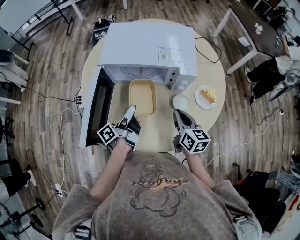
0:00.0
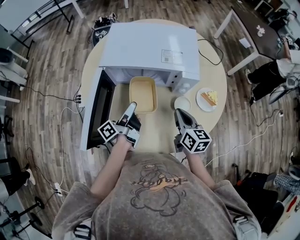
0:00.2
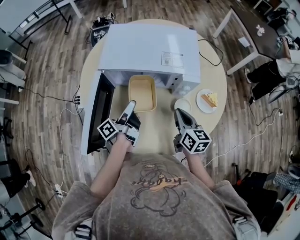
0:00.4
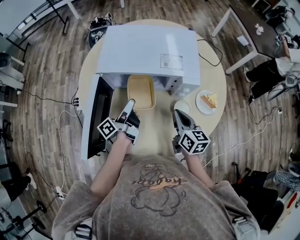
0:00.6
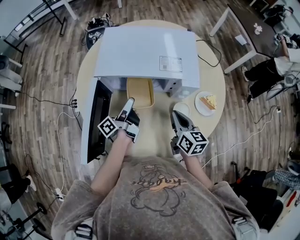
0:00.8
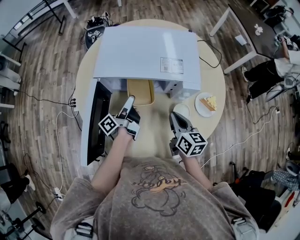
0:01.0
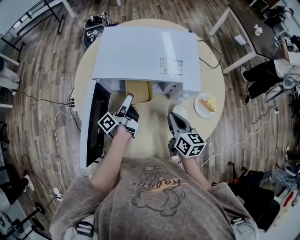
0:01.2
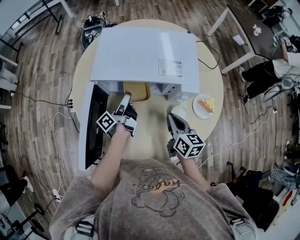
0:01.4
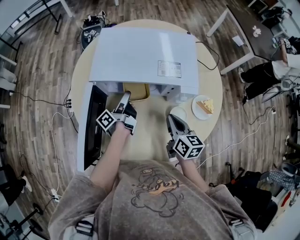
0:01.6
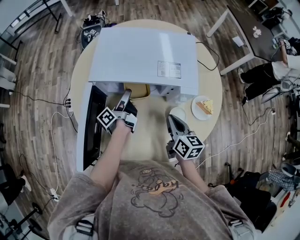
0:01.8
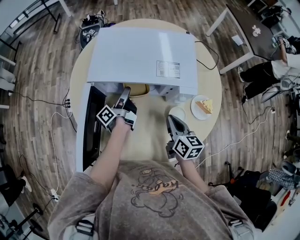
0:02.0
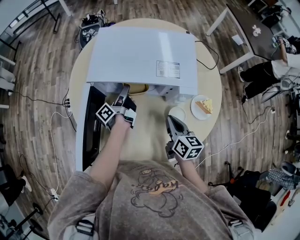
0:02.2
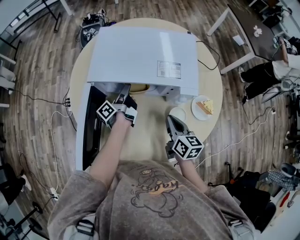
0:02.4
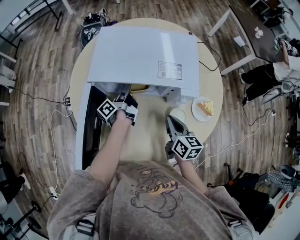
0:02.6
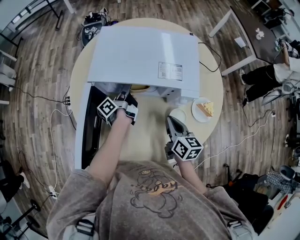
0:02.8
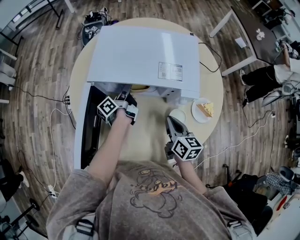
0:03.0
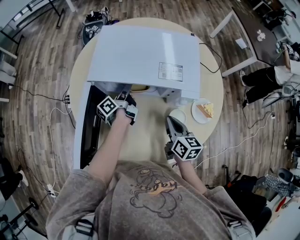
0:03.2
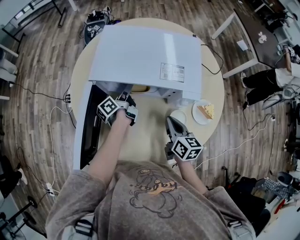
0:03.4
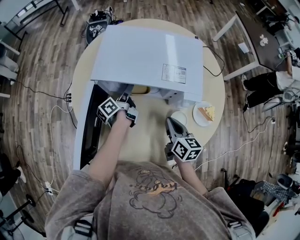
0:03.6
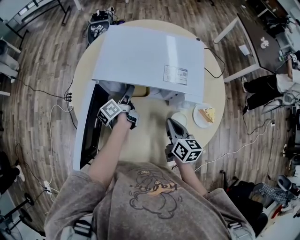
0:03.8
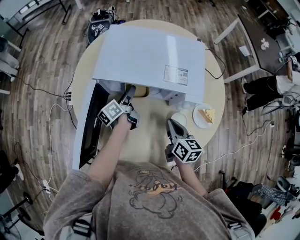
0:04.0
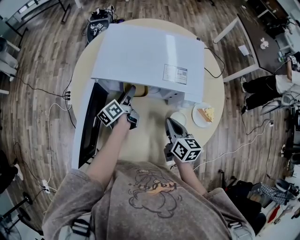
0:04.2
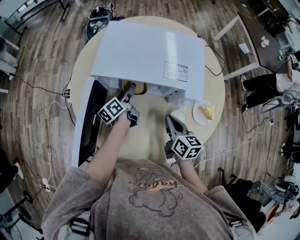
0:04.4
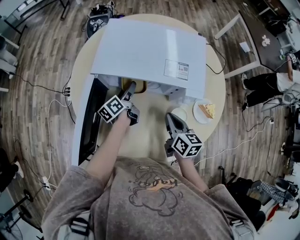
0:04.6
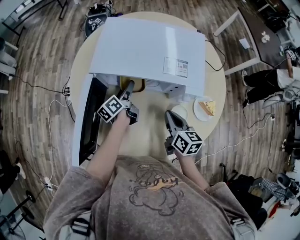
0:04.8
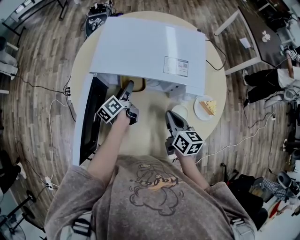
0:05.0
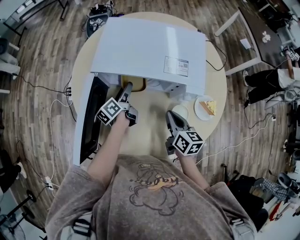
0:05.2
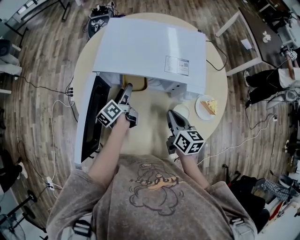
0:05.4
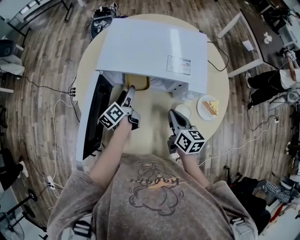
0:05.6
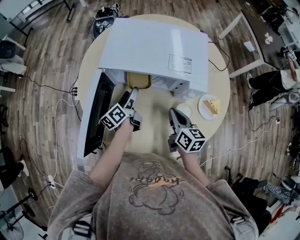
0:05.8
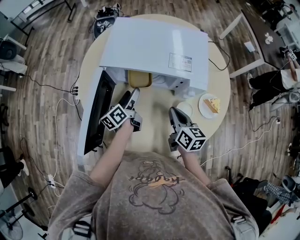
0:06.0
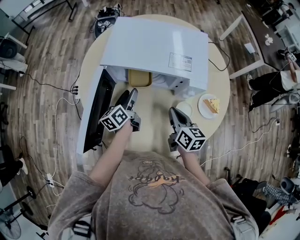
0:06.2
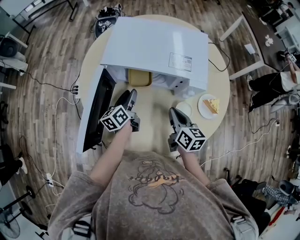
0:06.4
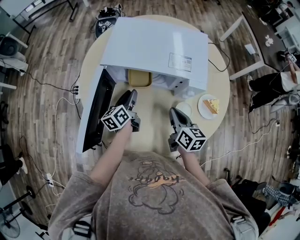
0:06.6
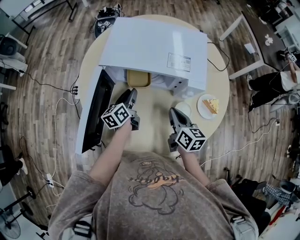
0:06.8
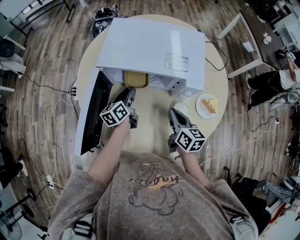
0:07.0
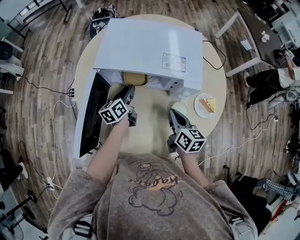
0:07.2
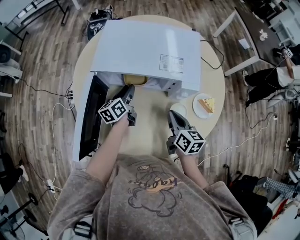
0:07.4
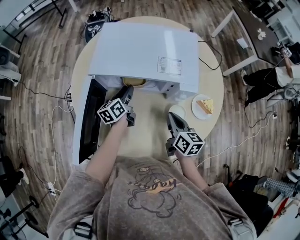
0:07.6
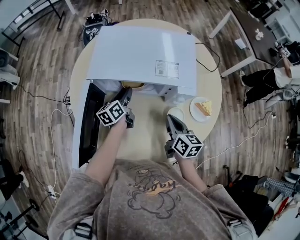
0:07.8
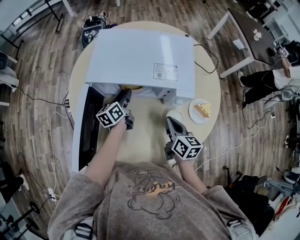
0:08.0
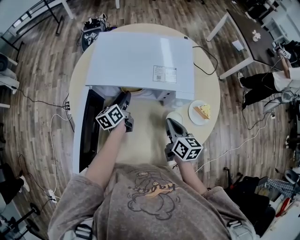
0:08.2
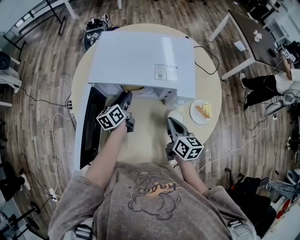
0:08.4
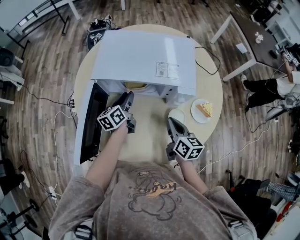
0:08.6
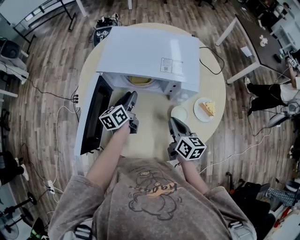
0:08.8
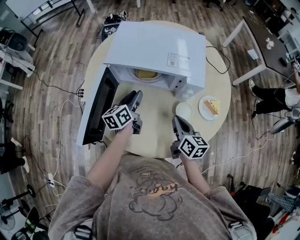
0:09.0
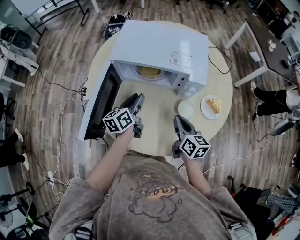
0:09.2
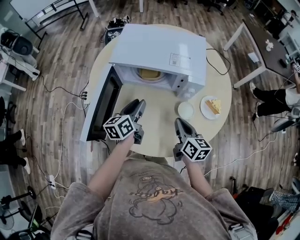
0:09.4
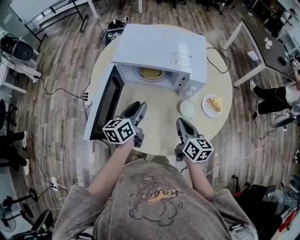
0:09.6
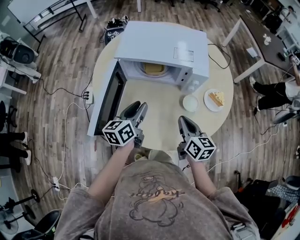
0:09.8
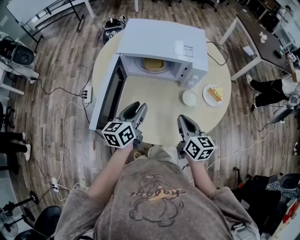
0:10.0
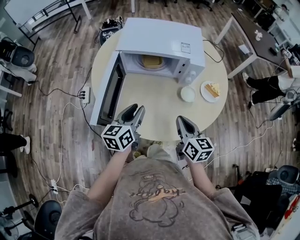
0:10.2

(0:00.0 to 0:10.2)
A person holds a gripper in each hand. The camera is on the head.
0:00.0 - 0:01.4: The right gripper shifts about 5 cm forward, while the left gripper travels forward by some 15 cm.
0:01.4 - 0:03.0: The left gripper goes about 5 cm forward.
0:03.0 - 0:04.4: The left gripper turns by some 20 degrees.
0:04.4 - 0:05.8: The left gripper goes roughly 5 cm backward.
0:05.8 - 0:07.2: The left gripper closes up.
0:07.2 - 0:08.8: There are only small adjustments of the grippers.
0:08.8 - 0:10.2: The right gripper travels backward by approximately 15 cm. The left gripper travels backward and upward by some 20 cm.

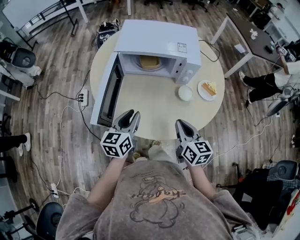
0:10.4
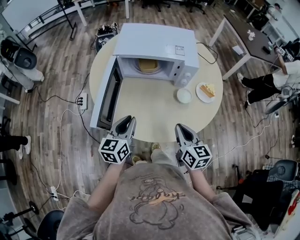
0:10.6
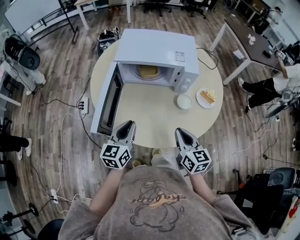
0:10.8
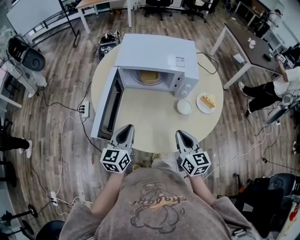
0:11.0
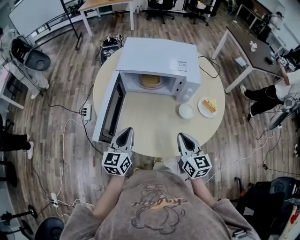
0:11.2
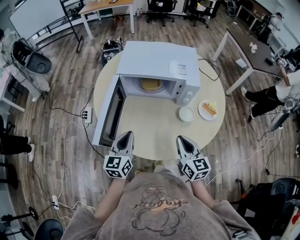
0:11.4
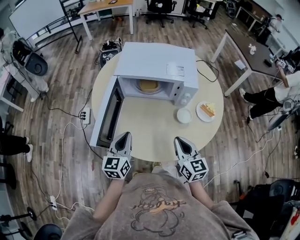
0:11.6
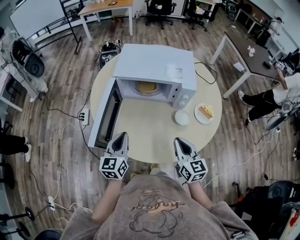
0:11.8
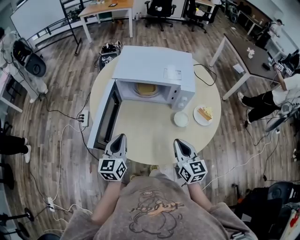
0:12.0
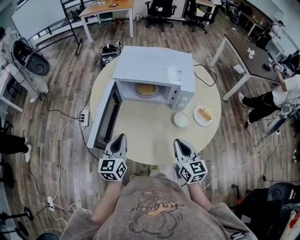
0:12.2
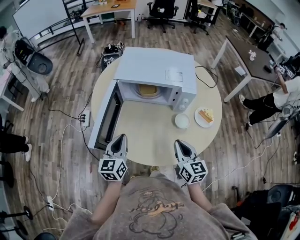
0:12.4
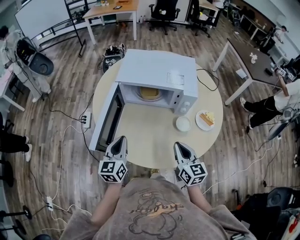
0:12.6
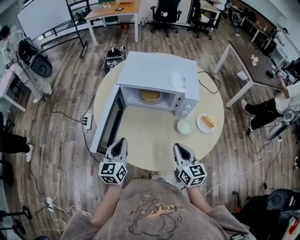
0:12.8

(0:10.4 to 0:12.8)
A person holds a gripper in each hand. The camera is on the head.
0:10.4 - 0:12.8: There are only small adjustments of the grippers.

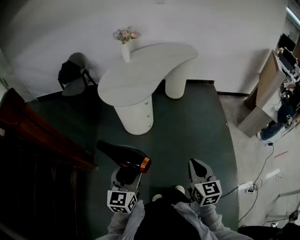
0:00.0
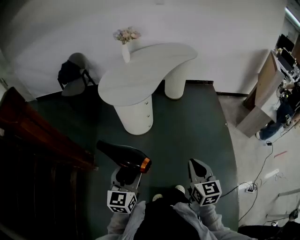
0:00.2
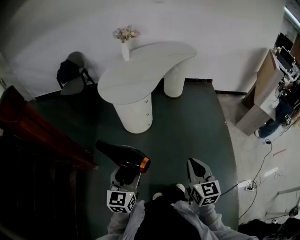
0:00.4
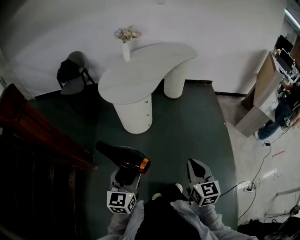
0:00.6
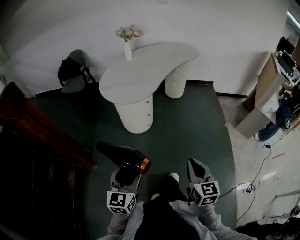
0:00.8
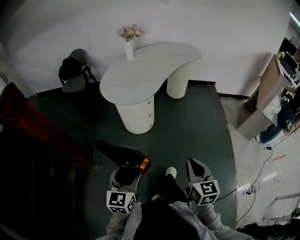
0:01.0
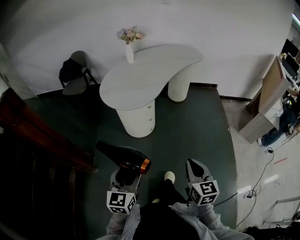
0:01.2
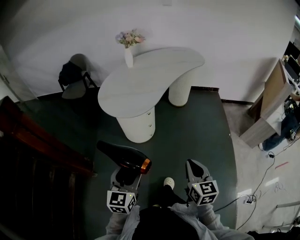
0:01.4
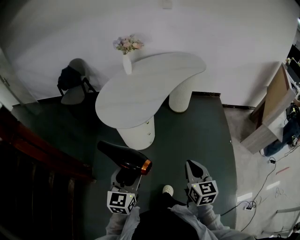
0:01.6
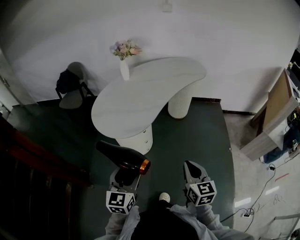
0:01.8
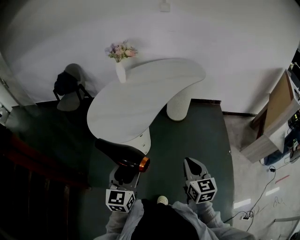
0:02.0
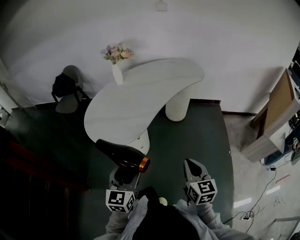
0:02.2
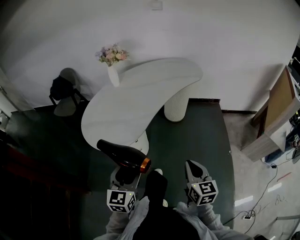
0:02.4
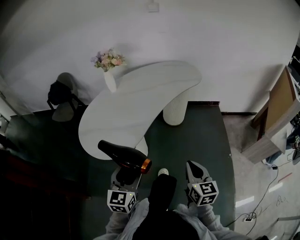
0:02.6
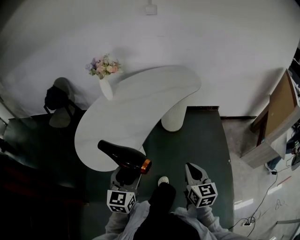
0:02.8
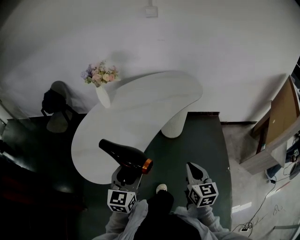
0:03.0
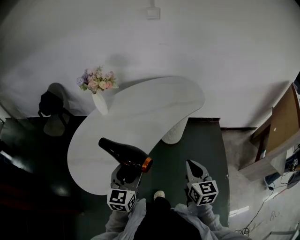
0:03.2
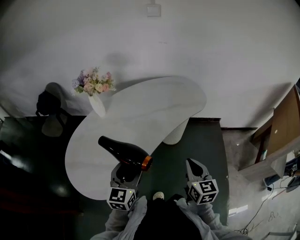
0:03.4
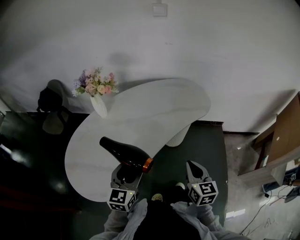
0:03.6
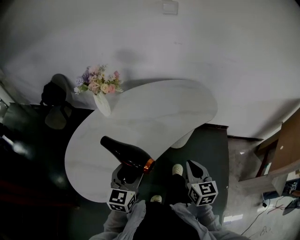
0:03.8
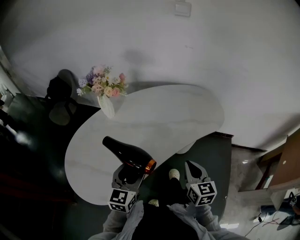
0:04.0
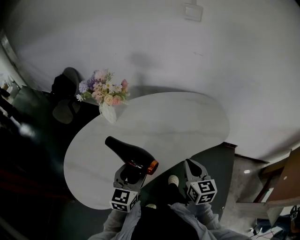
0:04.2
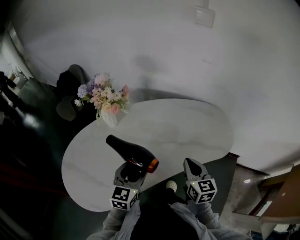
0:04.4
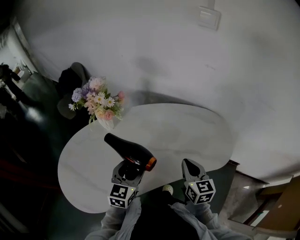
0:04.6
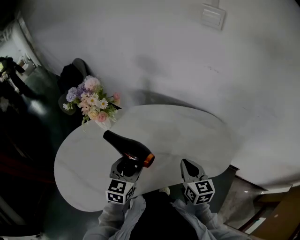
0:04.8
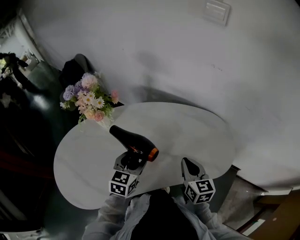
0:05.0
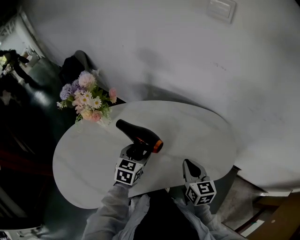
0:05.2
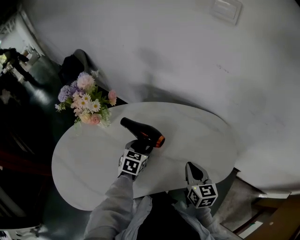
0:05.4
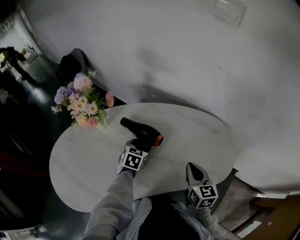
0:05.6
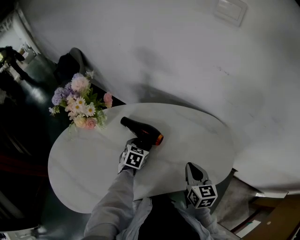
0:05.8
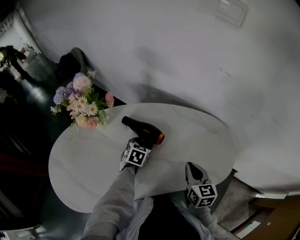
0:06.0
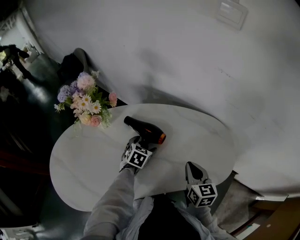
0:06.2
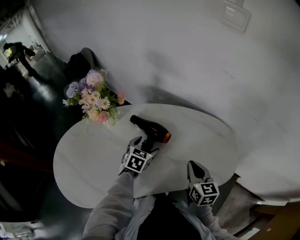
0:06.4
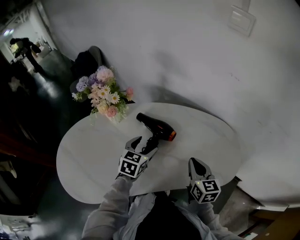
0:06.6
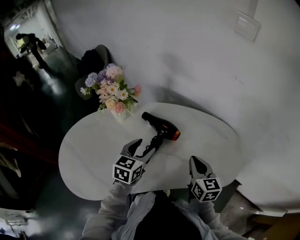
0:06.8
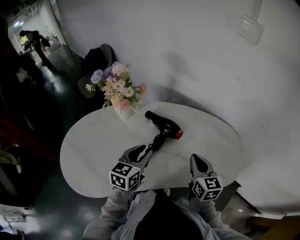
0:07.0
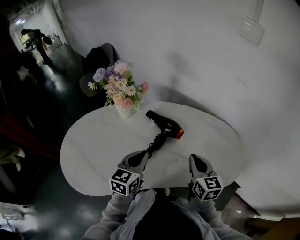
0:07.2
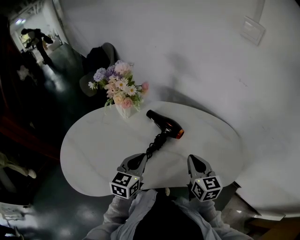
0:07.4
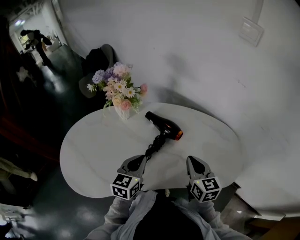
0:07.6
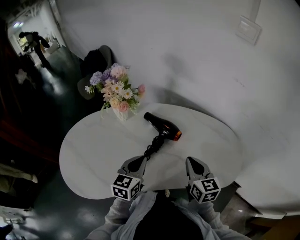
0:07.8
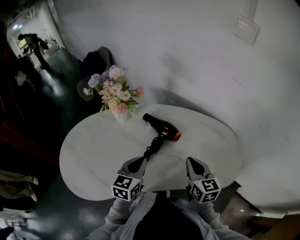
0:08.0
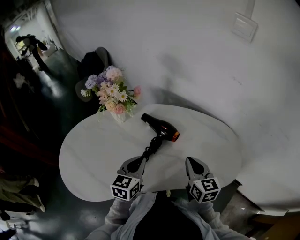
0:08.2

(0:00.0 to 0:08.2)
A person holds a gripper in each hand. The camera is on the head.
0:00.0 - 0:01.6: Both grippers move forward, about 15 cm.
0:01.6 - 0:03.2: The two grippers travel together, forward, about 50 cm.
0:03.2 - 0:05.0: The left gripper shifts by about 40 cm, and changes its angle by approximately 30 degrees. Meanwhile the right gripper changes place by approximately 40 cm, and turns by about 30 degrees.
0:05.0 - 0:06.6: The left gripper heads forward, covering some 5 cm, and goes downward and returns, some 15 cm each way.
0:06.6 - 0:08.2: The left gripper shifts some 10 cm backward, and closes.

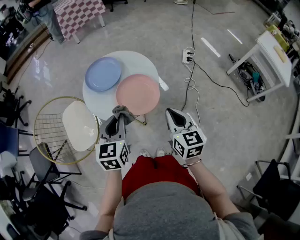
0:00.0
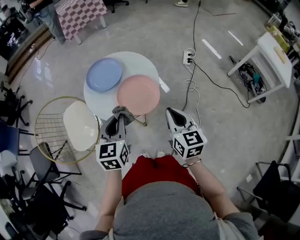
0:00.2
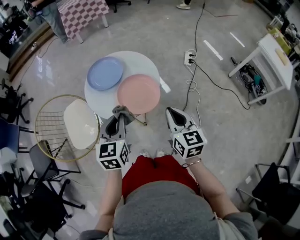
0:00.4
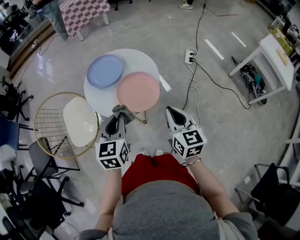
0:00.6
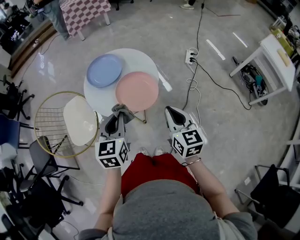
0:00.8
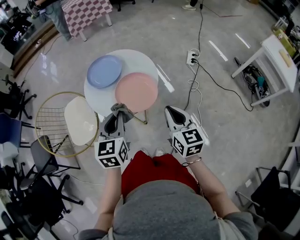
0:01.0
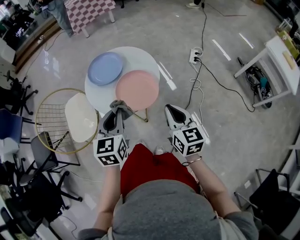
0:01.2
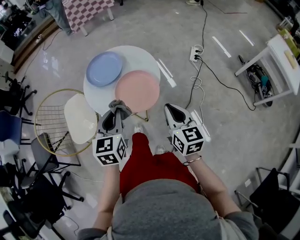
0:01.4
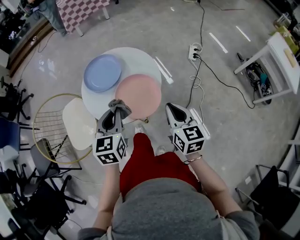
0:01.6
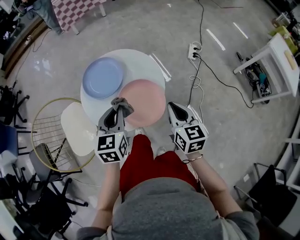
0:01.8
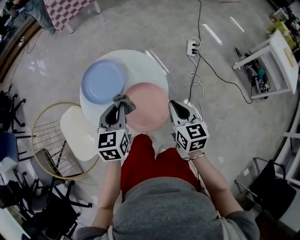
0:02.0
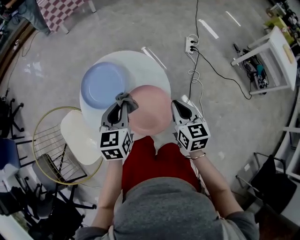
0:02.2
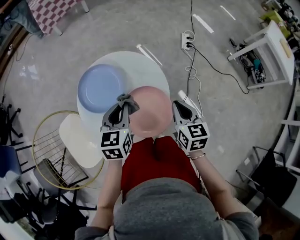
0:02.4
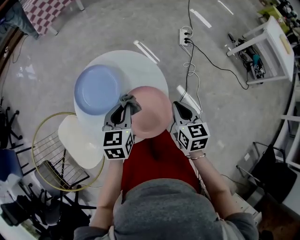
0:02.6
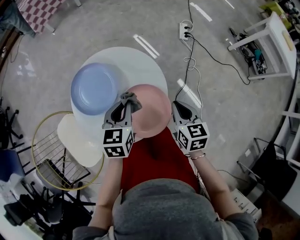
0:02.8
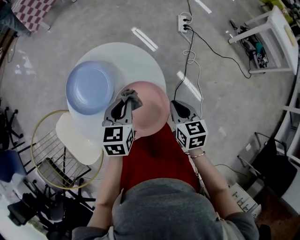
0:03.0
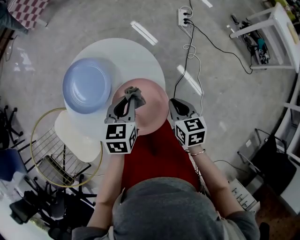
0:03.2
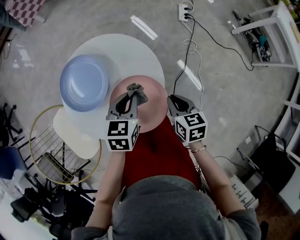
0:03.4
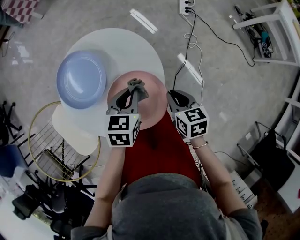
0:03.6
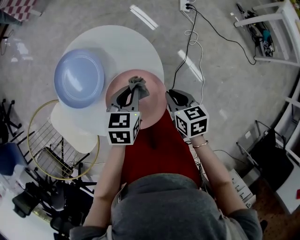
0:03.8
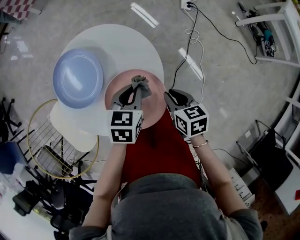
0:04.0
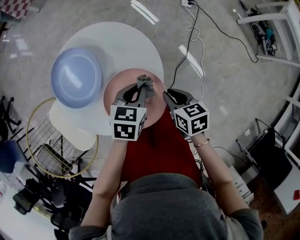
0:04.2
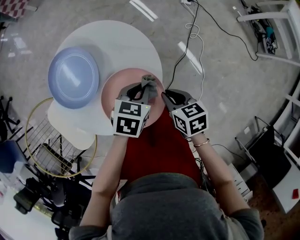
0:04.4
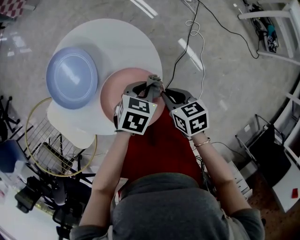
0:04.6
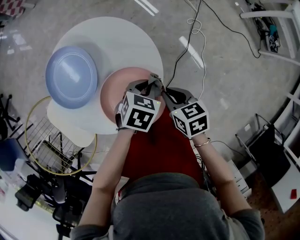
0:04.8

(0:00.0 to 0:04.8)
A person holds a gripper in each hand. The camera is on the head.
0:00.0 - 0:01.6: Both grippers travel together forward, some 5 cm.
0:01.6 - 0:03.2: The left gripper travels forward and downward by about 20 cm, and turns by about 30 degrees. The right gripper is displaced downward and forward by some 15 cm, and changes its angle by some 30 degrees.
0:03.2 - 0:04.8: The left gripper heads to the right and downward, covering about 15 cm, and turns by about 30 degrees, while the right gripper goes approximately 5 cm downward.
